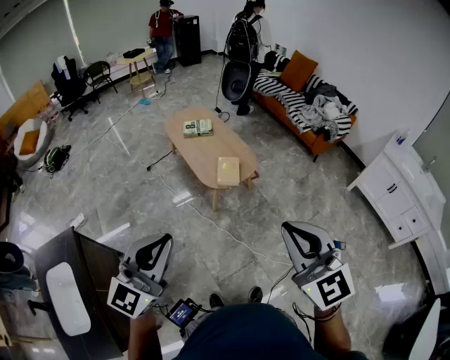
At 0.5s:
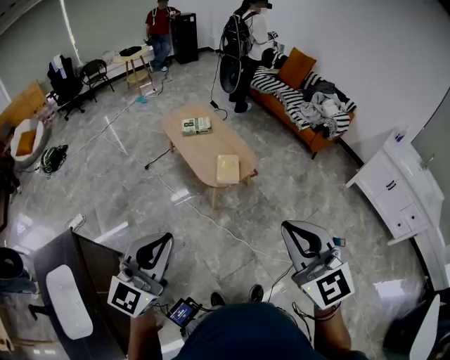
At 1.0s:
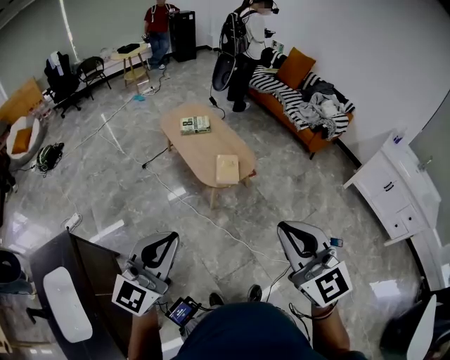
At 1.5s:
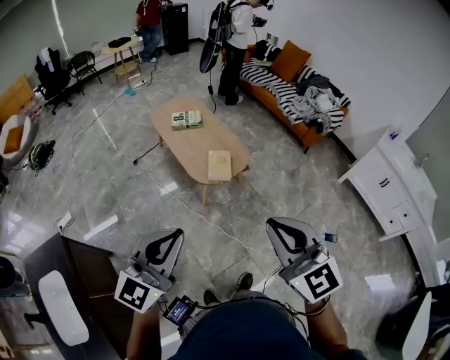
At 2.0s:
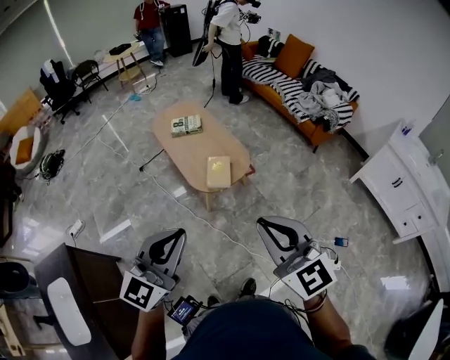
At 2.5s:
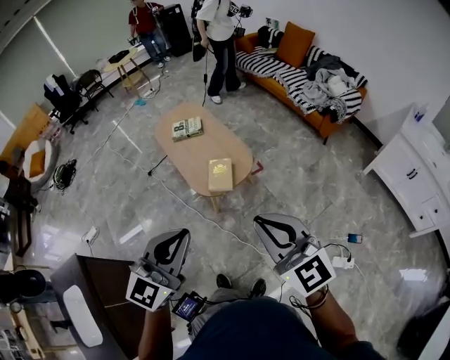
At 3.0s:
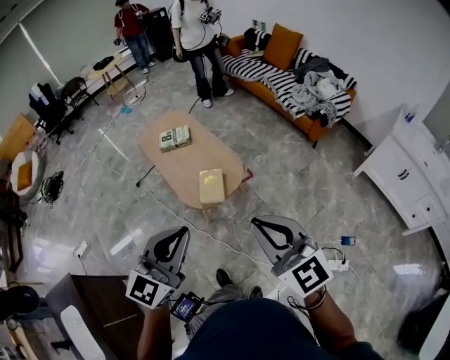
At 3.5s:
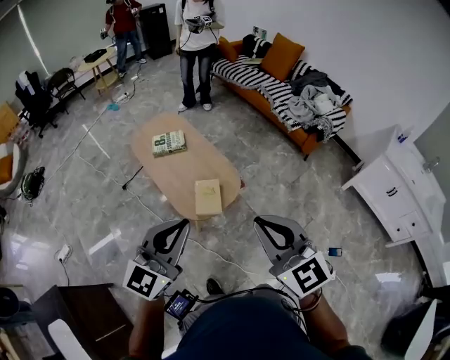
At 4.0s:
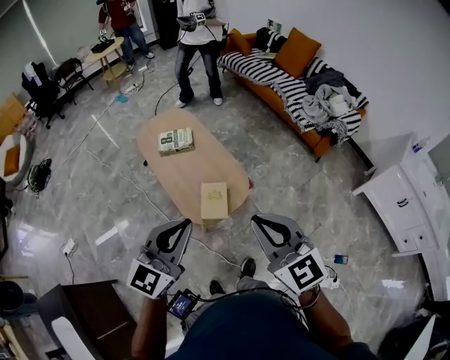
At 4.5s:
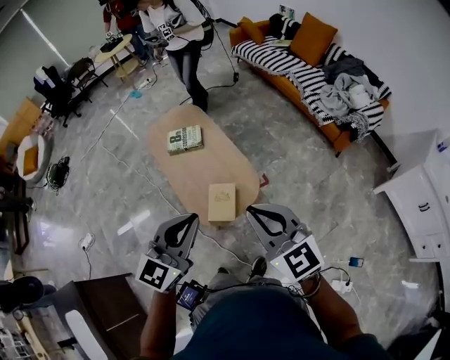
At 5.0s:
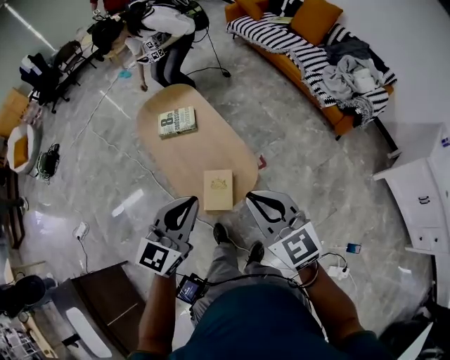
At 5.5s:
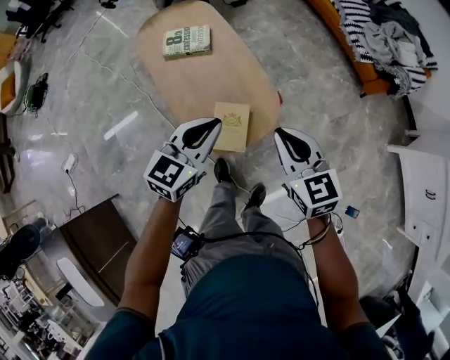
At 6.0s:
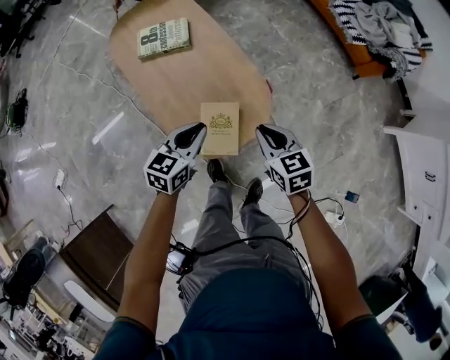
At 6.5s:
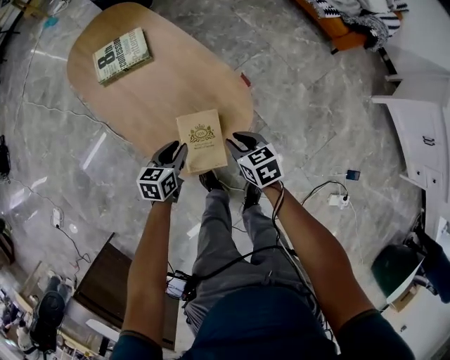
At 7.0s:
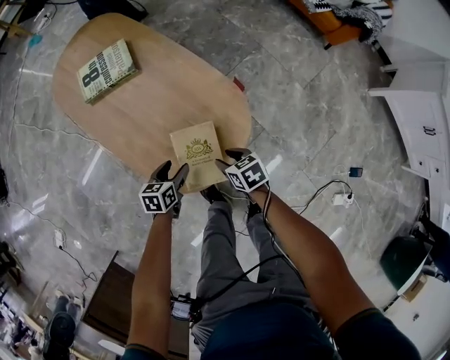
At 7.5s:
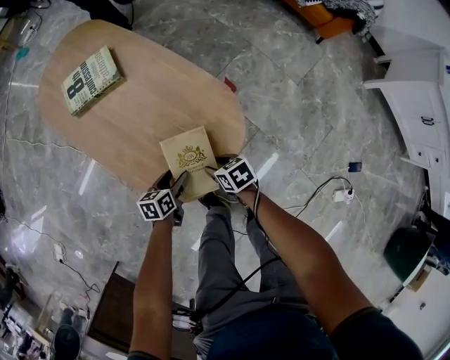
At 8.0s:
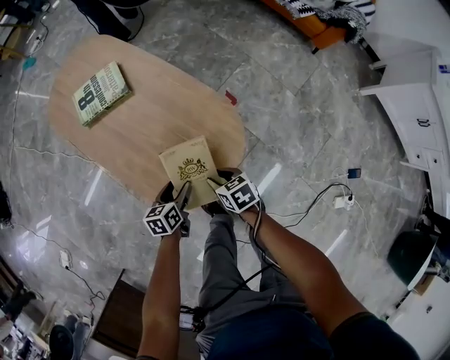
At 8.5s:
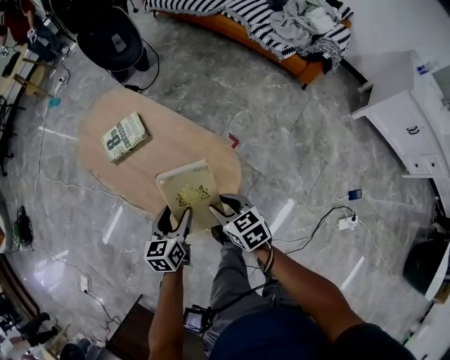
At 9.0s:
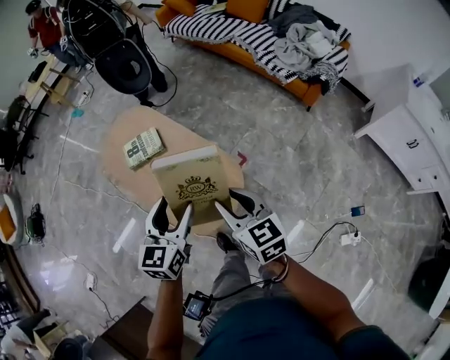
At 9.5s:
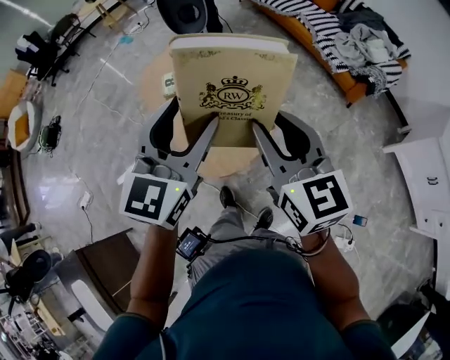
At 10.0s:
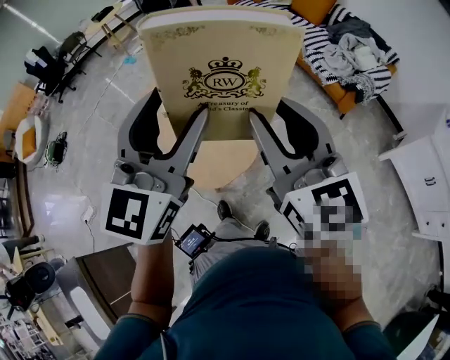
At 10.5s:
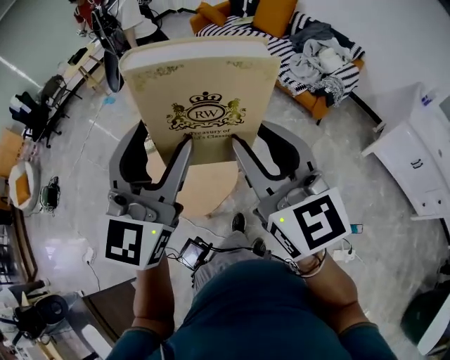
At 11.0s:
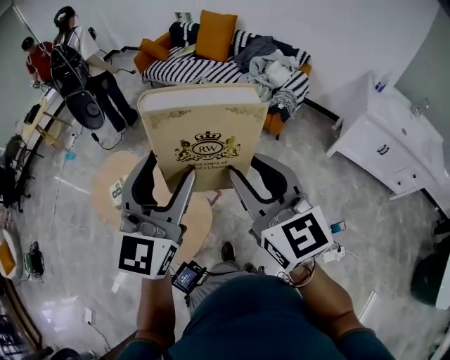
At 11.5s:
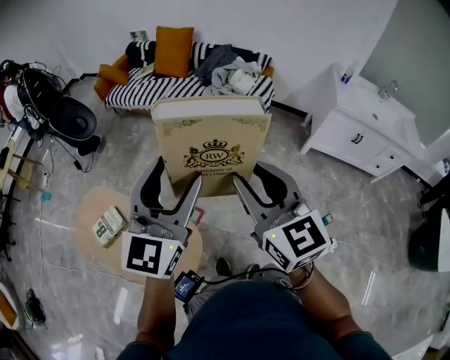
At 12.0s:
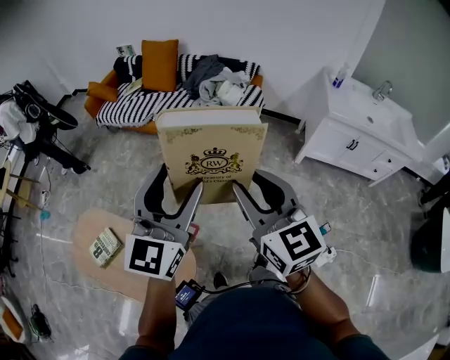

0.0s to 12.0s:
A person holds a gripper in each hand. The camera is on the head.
0.0s to 2.0s: The left gripper travels forward and to the right by approximately 15 cm. Meanwhile the right gripper moves forward, approximately 15 cm.
2.0s to 4.0s: Both grippers travel together forward, about 30 cm.
4.0s to 6.0s: Both grippers move downward and forward, approximately 50 cm. The left gripper swivels some 40 degrees; the right gripper swivels roughly 40 degrees.
6.0s to 8.0s: The grippers both shift downward by about 25 cm. The right gripper changes its angle by some 30 degrees, and opens. Meanwhile the left gripper turns by roughly 30 degrees, and opens.
8.0s to 10.0s: The two grippers go some 70 cm upward. The right gripper angles its fingers upward, by roughly 60 degrees, while the left gripper points its fingers approximately 50 degrees further upward.
10.0s to 12.0s: The right gripper moves some 30 cm, and rotates roughly 40 degrees, while the left gripper changes place by roughly 35 cm, and swivels roughly 40 degrees.

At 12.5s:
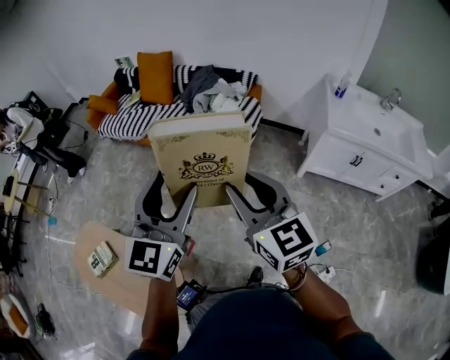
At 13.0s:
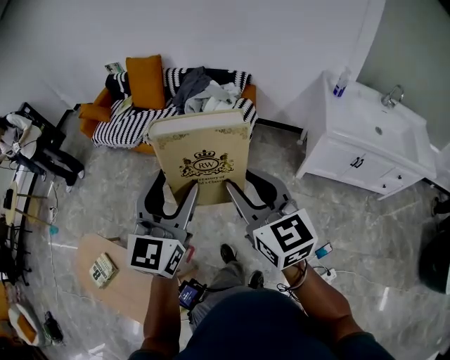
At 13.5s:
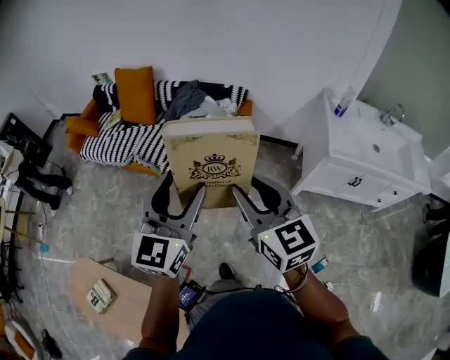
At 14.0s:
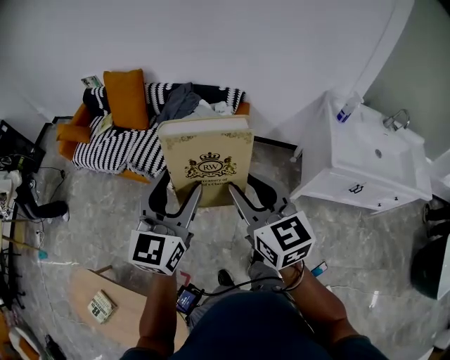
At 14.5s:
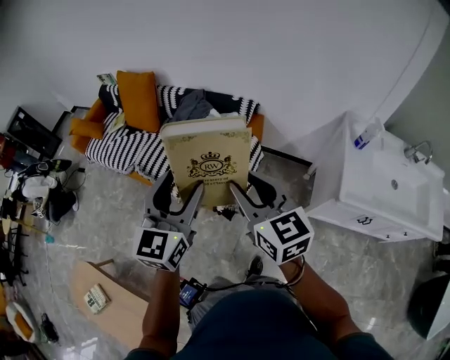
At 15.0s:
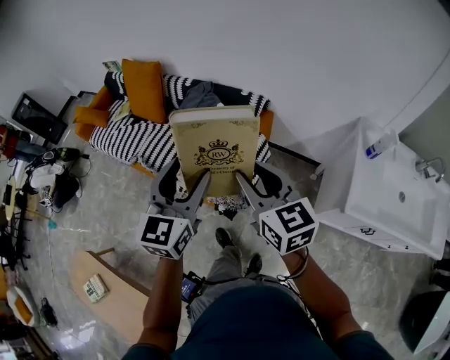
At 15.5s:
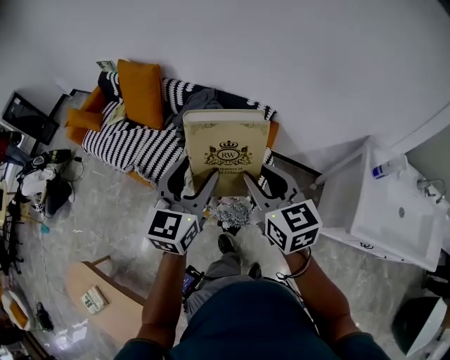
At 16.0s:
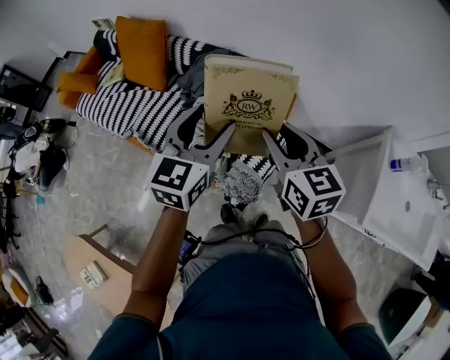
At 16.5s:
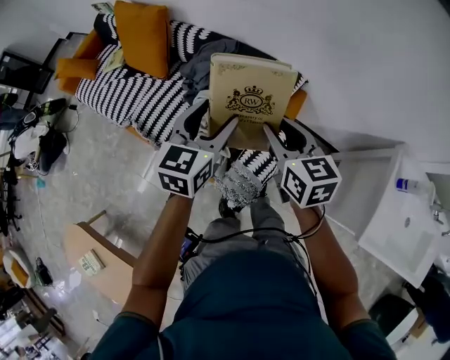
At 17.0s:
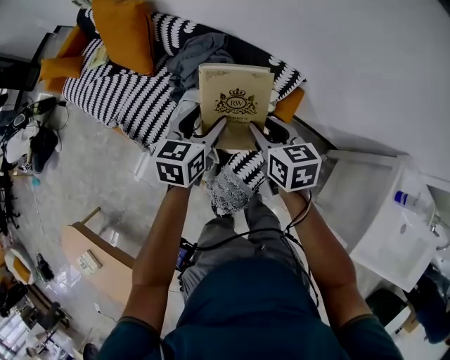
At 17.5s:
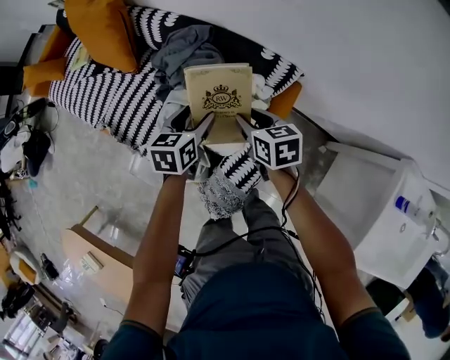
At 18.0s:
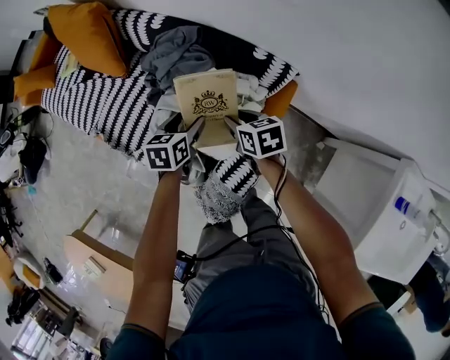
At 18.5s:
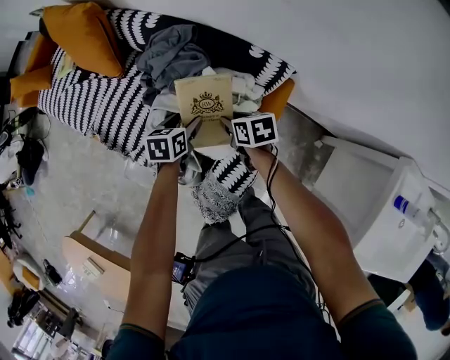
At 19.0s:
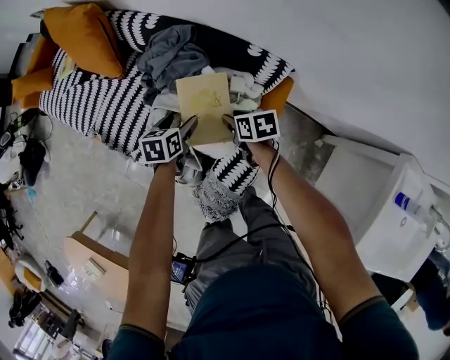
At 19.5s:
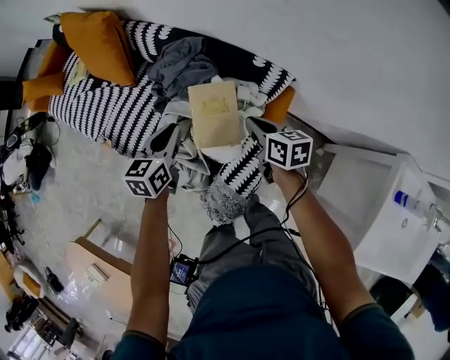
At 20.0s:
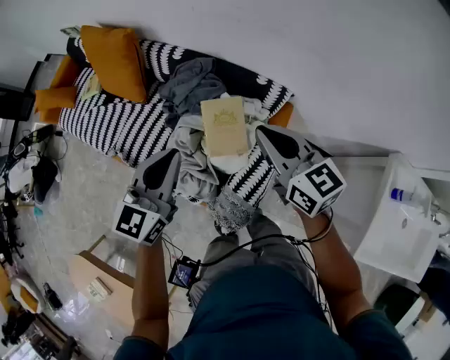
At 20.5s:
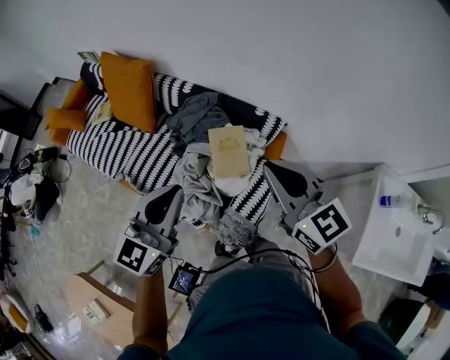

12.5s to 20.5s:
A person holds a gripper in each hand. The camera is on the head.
12.5s to 14.5s: The pair of grippers is taken forward, roughly 50 cm.
14.5s to 16.5s: The two grippers go roughly 40 cm forward and downward.
16.5s to 18.5s: The left gripper is displaced downward by roughly 35 cm, and tilts its fingers some 30 degrees downward. The right gripper shifts roughly 35 cm downward and forward, and rotates about 40 degrees.
18.5s to 20.5s: The two grippers go roughly 50 cm upward. The right gripper tips its fingers upward by approximately 40 degrees, and closes; the left gripper tilts its fingers about 50 degrees upward, and closes its fingers.

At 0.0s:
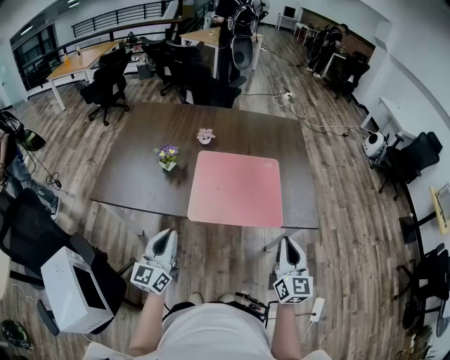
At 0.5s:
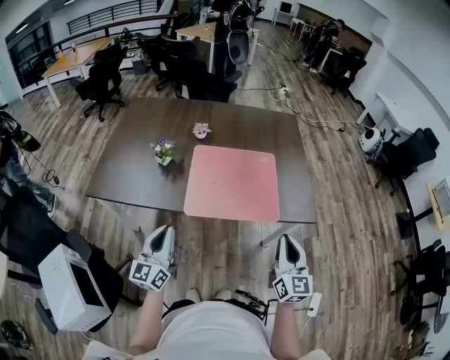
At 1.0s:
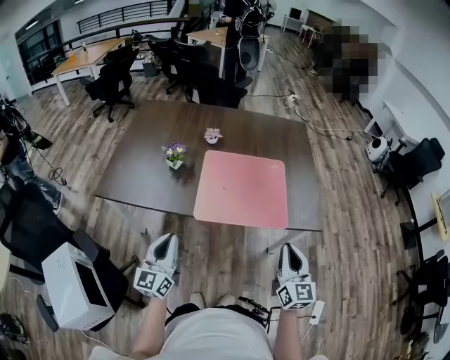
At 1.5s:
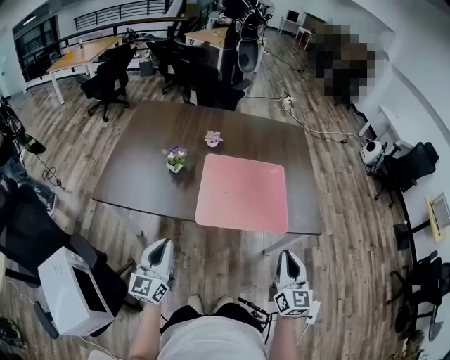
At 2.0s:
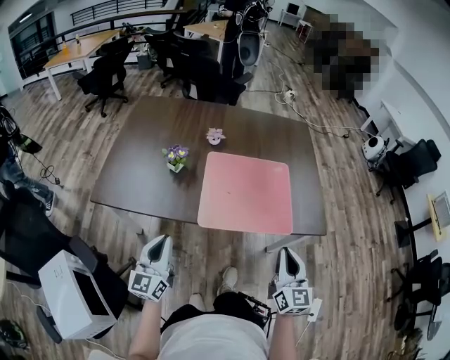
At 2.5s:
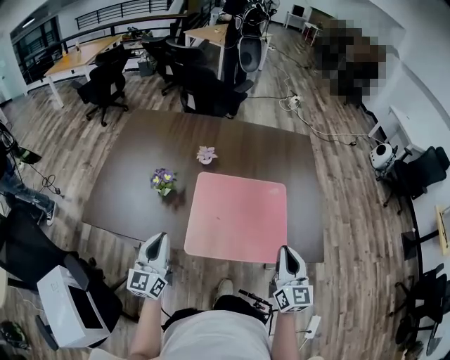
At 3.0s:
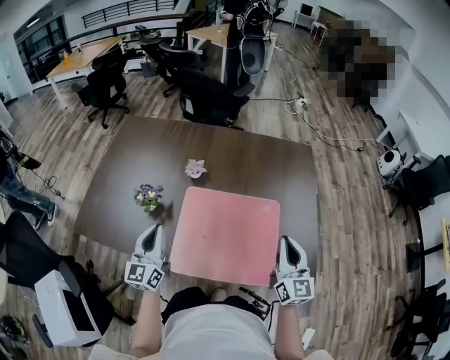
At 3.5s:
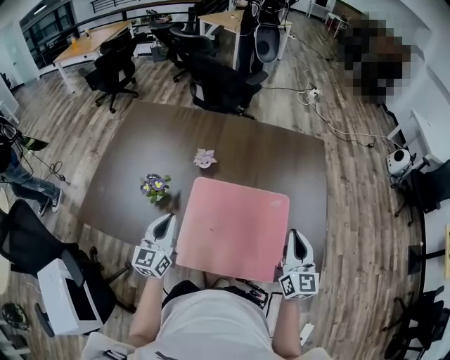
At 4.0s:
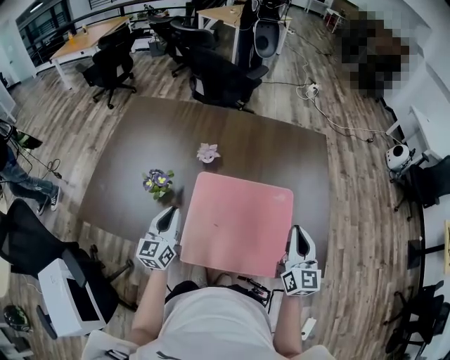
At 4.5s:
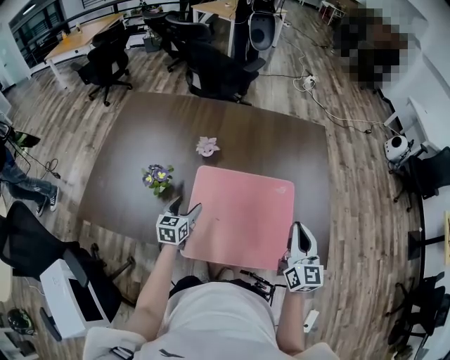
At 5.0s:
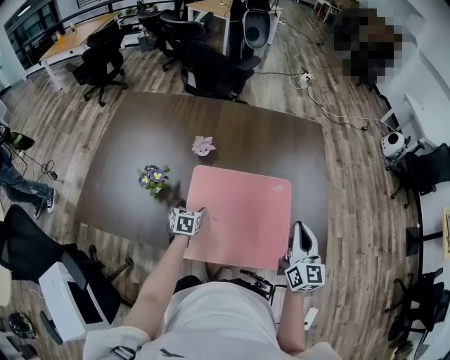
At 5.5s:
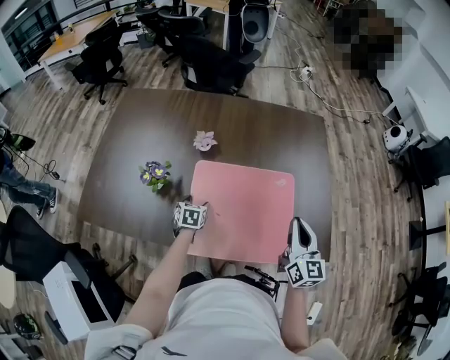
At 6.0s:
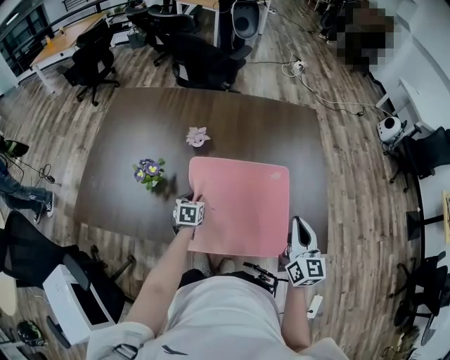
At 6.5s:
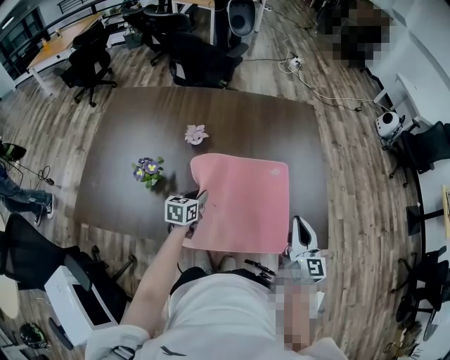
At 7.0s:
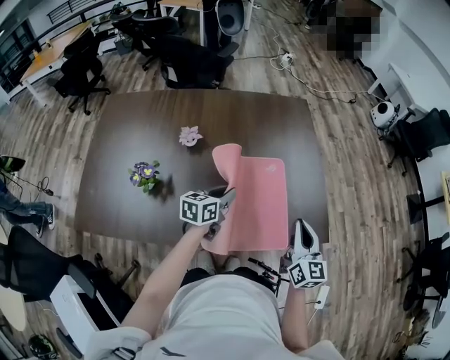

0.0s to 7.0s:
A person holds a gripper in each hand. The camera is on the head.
0.0s to 2.0s: The two grippers go some 5 cm to the left.
2.0s to 3.5s: Both grippers move forward, some 25 cm.
3.5s to 5.0s: The left gripper goes roughly 25 cm downward, tilts its fingers roughly 40 degrees downward, and opens.
5.0s to 7.0s: The right gripper shifts about 5 cm backward. Meanwhile the left gripper is displaced to the right and upward by approximately 25 cm, rotates some 40 degrees, and closes its fingers.
